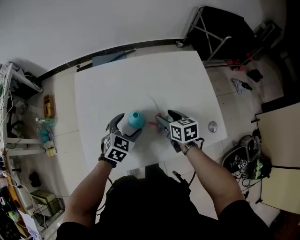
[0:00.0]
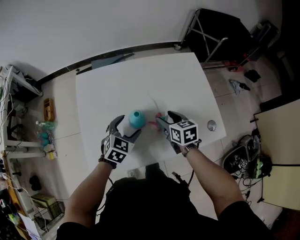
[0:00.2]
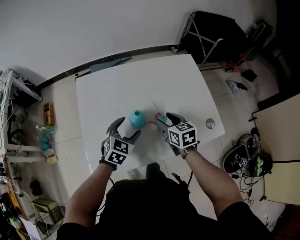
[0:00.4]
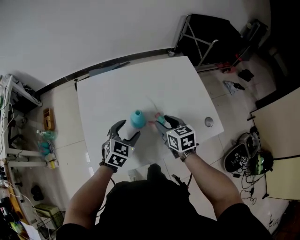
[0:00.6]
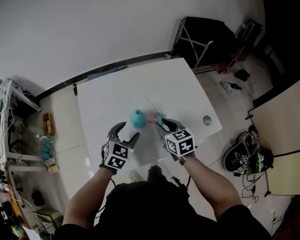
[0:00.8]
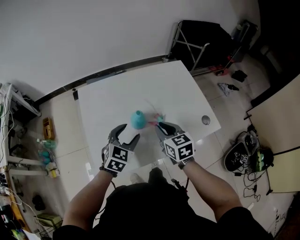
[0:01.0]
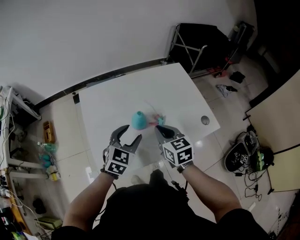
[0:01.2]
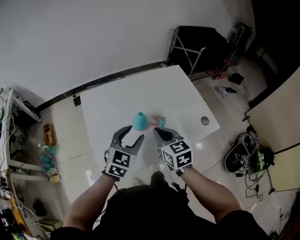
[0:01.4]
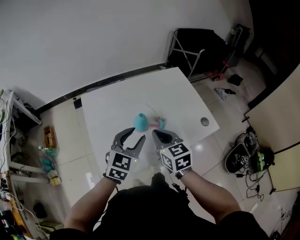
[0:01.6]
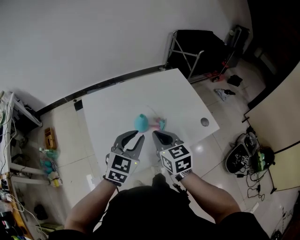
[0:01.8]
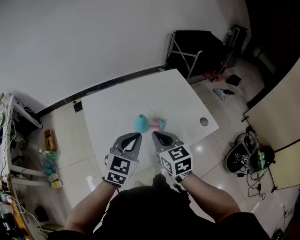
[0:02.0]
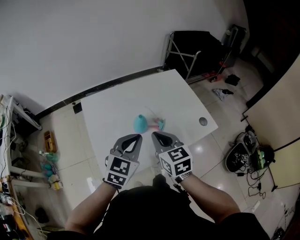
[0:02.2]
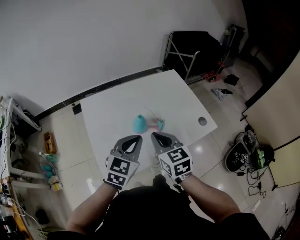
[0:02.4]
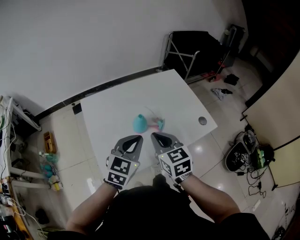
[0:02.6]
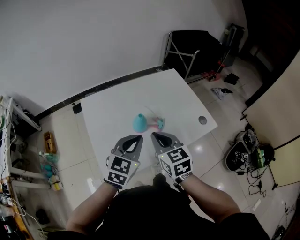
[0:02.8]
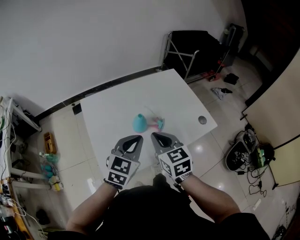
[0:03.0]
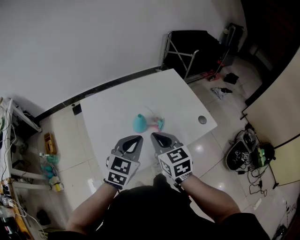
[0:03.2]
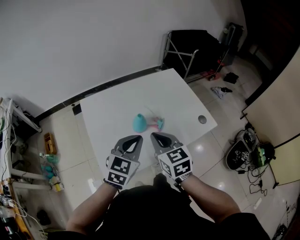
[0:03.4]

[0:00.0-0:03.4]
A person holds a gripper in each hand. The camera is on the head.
0:00.0 to 0:01.6: The right gripper goes roughly 20 cm upward, backward and to the left, swivels roughly 20 degrees, and closes its fingers. Meanwhile the left gripper travels upward and backward by some 15 cm, swivels some 20 degrees, and closes its fingers.
0:01.6 to 0:03.4: The left gripper closes its fingers.

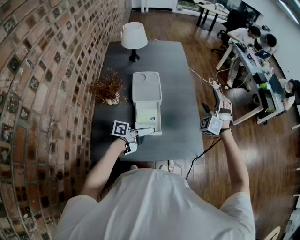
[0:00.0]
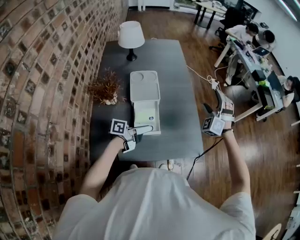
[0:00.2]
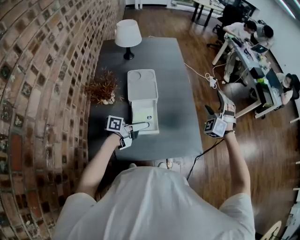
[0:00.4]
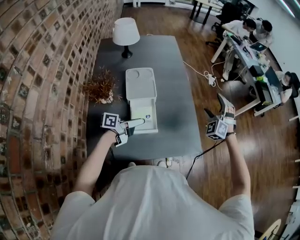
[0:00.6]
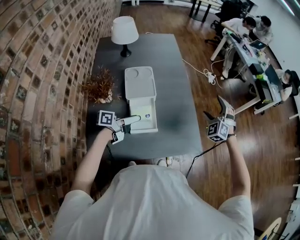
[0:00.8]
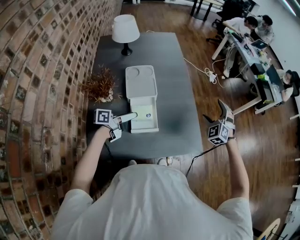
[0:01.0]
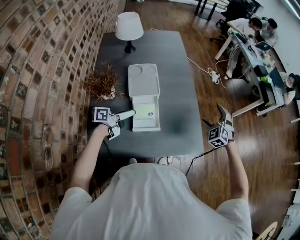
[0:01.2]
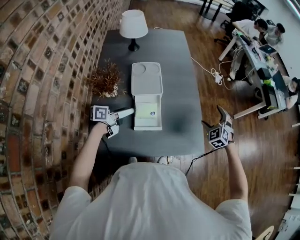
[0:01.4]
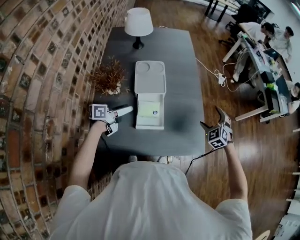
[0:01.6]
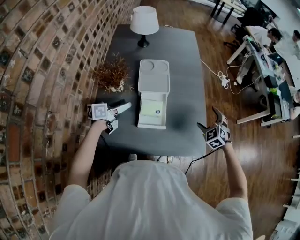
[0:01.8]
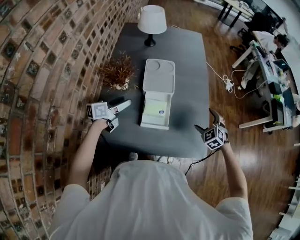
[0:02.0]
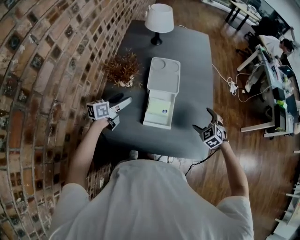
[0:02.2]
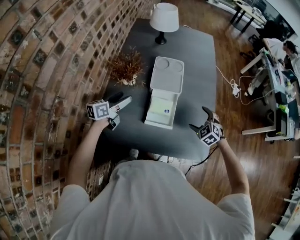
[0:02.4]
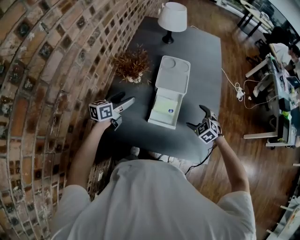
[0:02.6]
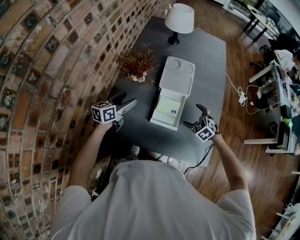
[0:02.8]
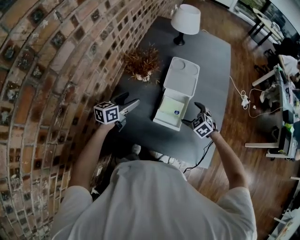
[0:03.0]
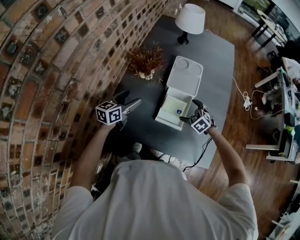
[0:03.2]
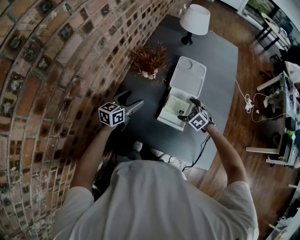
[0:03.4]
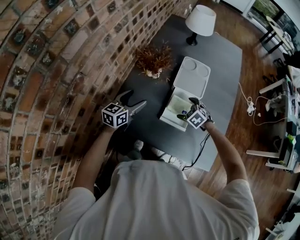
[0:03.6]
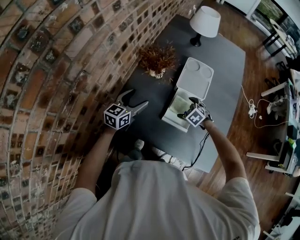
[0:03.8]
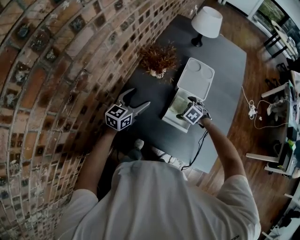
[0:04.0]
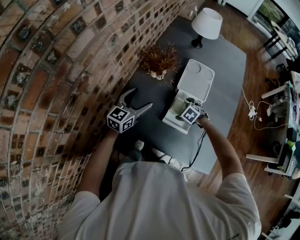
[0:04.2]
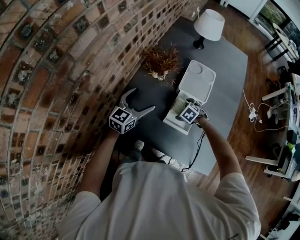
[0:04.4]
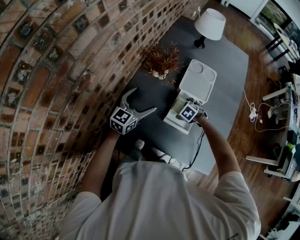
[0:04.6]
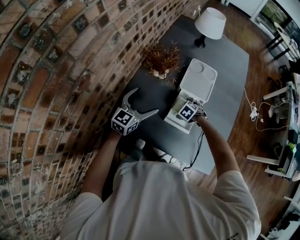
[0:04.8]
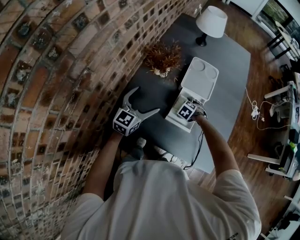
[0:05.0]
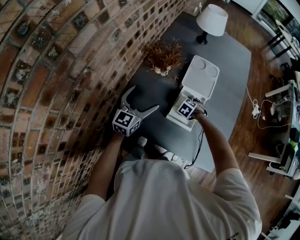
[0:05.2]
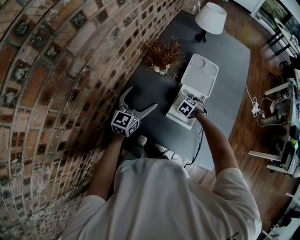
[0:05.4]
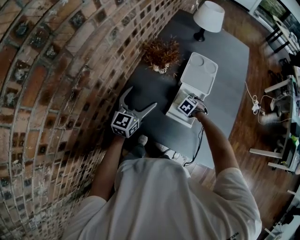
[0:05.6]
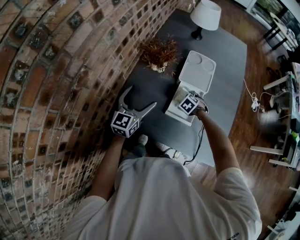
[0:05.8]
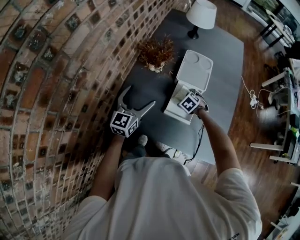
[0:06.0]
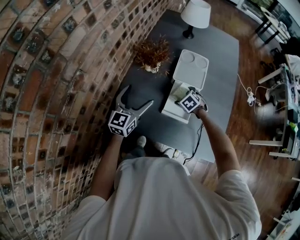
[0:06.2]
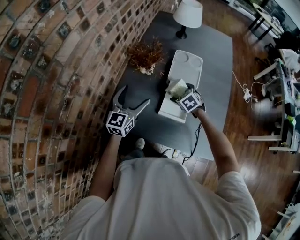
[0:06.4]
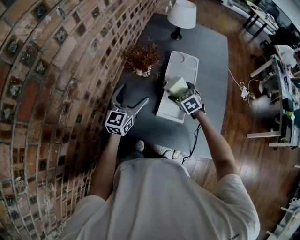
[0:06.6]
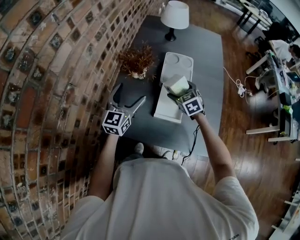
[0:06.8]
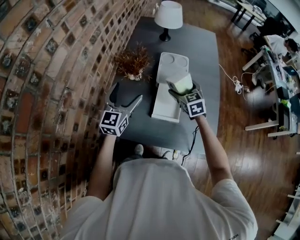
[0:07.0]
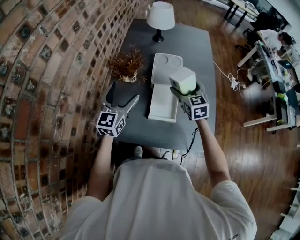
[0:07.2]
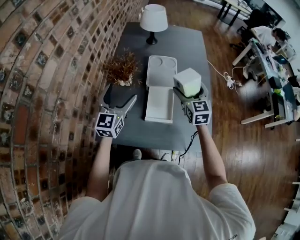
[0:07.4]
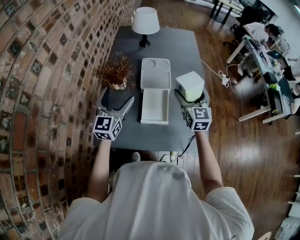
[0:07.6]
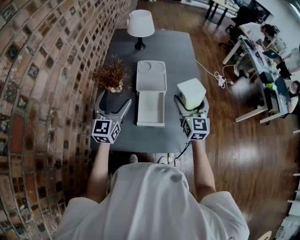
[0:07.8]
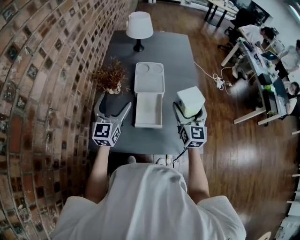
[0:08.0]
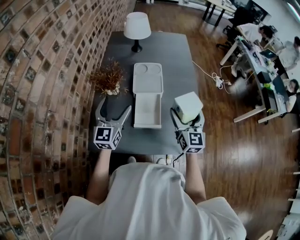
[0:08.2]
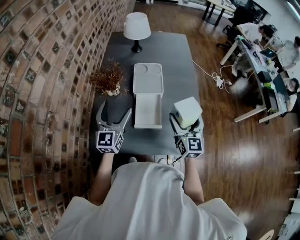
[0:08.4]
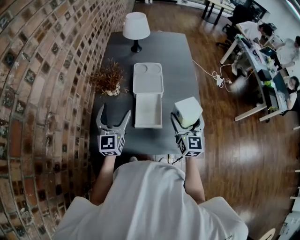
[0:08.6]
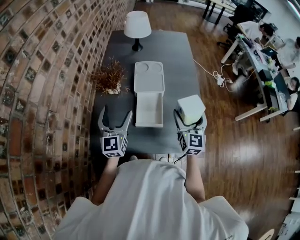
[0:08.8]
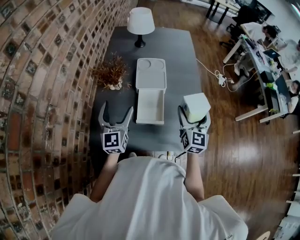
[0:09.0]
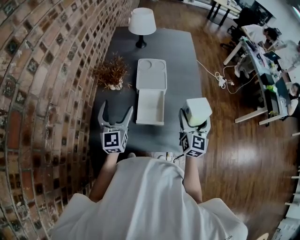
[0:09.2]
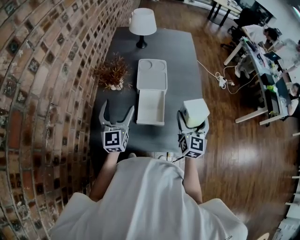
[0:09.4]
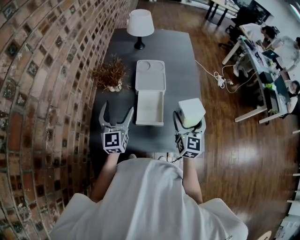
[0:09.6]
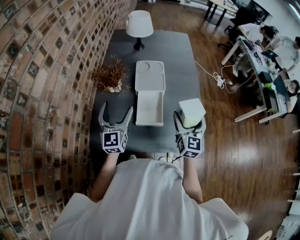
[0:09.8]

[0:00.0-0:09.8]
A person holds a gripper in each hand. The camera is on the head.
0:00.0 to 0:01.4: The right gripper travels downward and to the right by approximately 15 cm, and turns by roughly 30 degrees; the left gripper shifts some 15 cm to the left.
0:01.4 to 0:02.8: The left gripper shifts by approximately 10 cm, and turns by some 40 degrees. Meanwhile the right gripper shifts by some 25 cm, and turns by approximately 30 degrees.
0:02.8 to 0:04.2: The right gripper goes roughly 15 cm to the left, downward and forward, and rotates roughly 20 degrees; the left gripper changes its angle by roughly 30 degrees.
0:04.2 to 0:05.6: The grippers move only a little.
0:05.6 to 0:07.0: The right gripper is displaced upward by roughly 25 cm, and angles its fingers upward, by about 50 degrees; the left gripper shifts approximately 5 cm upward.
0:07.0 to 0:08.4: The right gripper travels backward, to the right and upward by about 20 cm, and points its fingers about 30 degrees further upward. Meanwhile the left gripper goes approximately 5 cm to the right.
0:08.4 to 0:09.8: There are only small adjustments of the grippers.

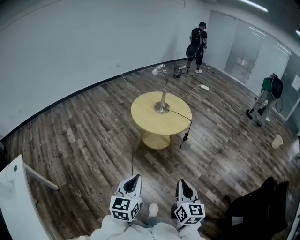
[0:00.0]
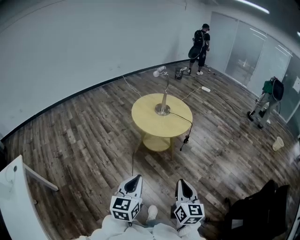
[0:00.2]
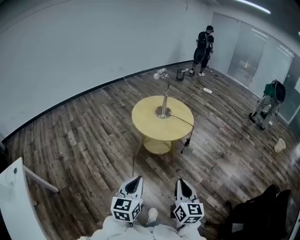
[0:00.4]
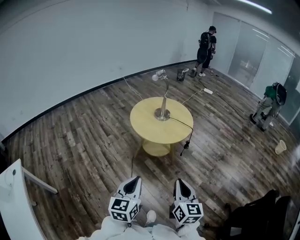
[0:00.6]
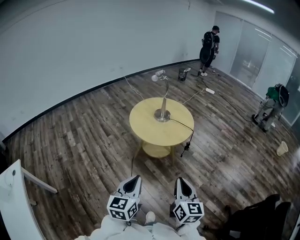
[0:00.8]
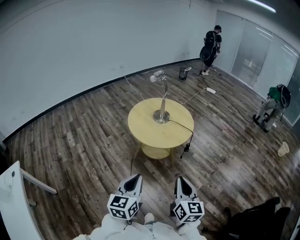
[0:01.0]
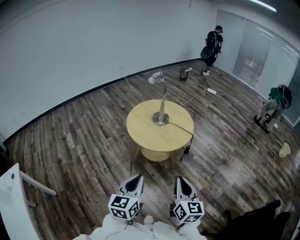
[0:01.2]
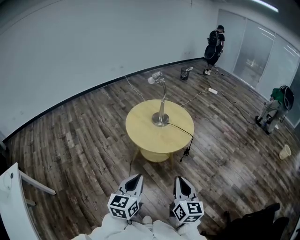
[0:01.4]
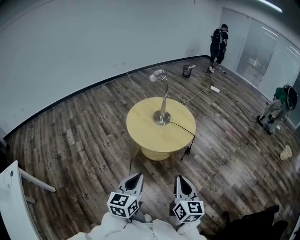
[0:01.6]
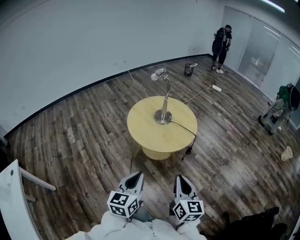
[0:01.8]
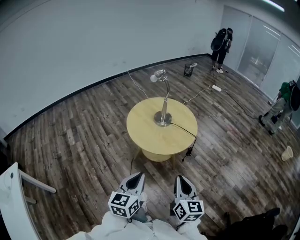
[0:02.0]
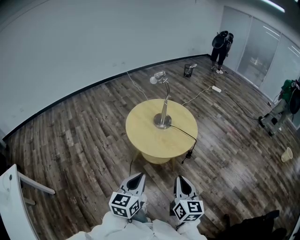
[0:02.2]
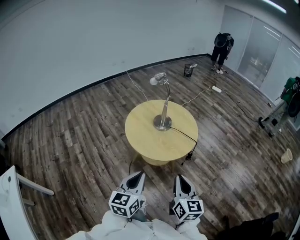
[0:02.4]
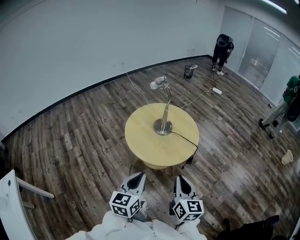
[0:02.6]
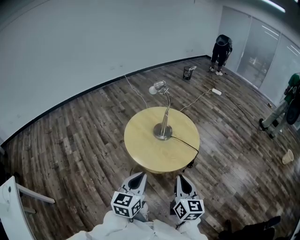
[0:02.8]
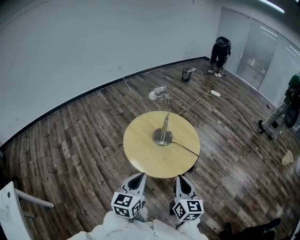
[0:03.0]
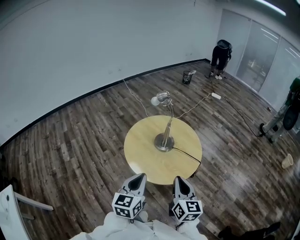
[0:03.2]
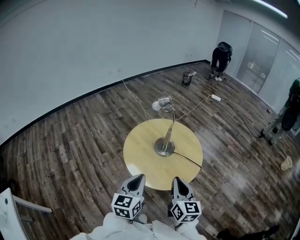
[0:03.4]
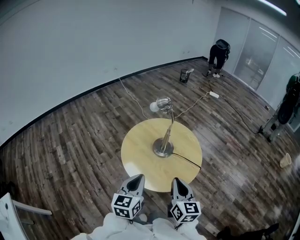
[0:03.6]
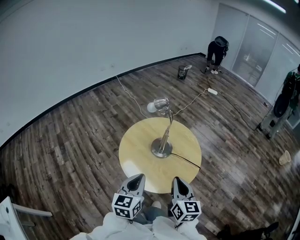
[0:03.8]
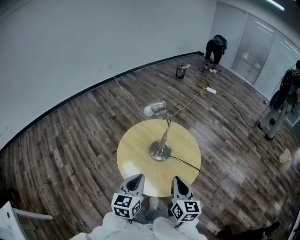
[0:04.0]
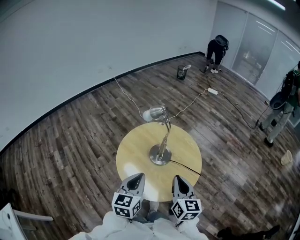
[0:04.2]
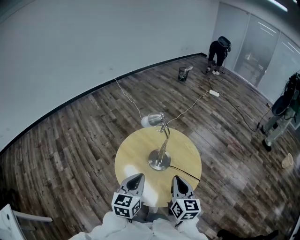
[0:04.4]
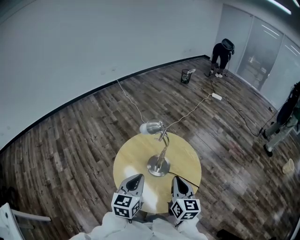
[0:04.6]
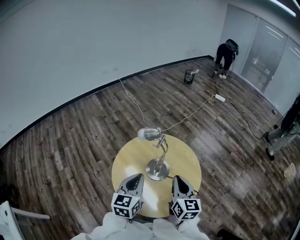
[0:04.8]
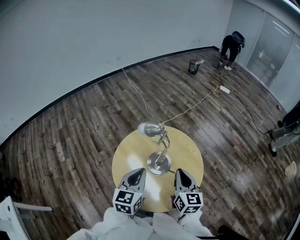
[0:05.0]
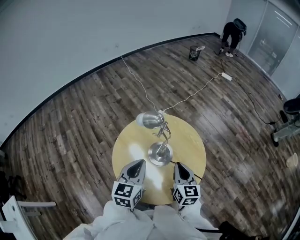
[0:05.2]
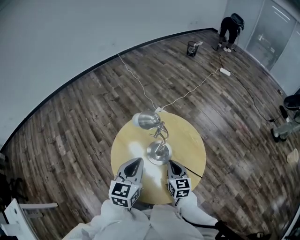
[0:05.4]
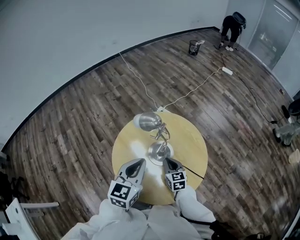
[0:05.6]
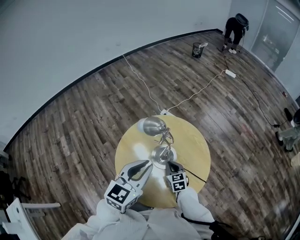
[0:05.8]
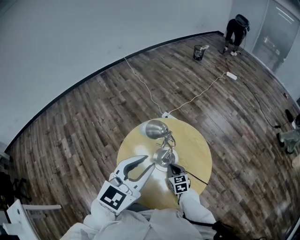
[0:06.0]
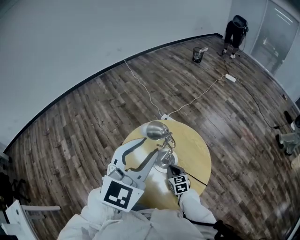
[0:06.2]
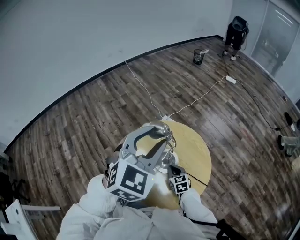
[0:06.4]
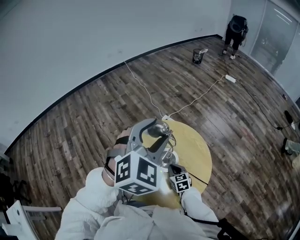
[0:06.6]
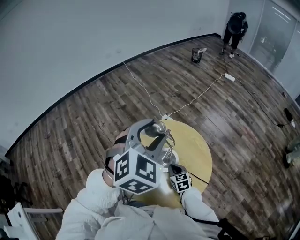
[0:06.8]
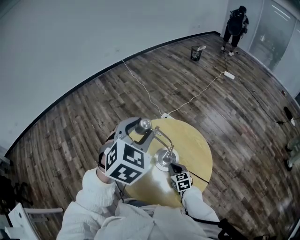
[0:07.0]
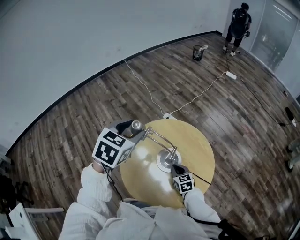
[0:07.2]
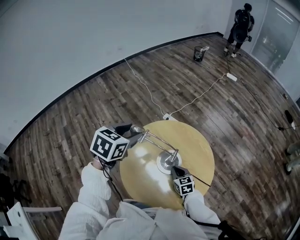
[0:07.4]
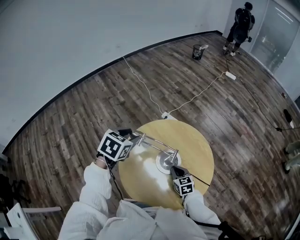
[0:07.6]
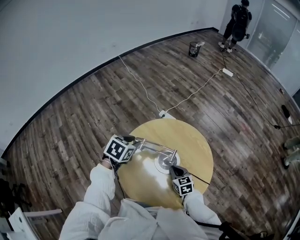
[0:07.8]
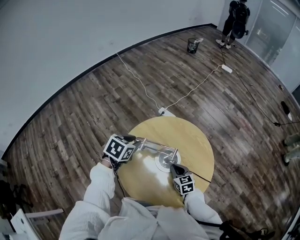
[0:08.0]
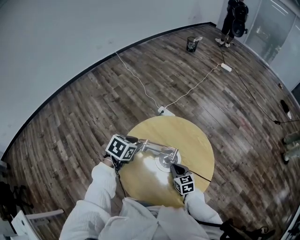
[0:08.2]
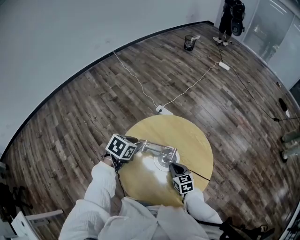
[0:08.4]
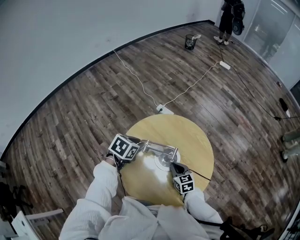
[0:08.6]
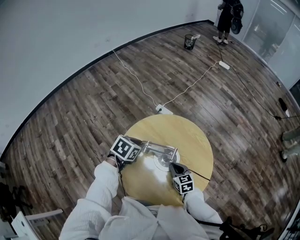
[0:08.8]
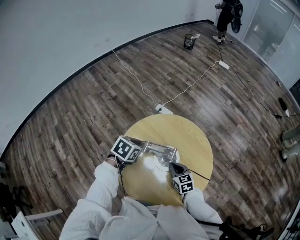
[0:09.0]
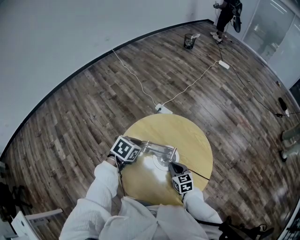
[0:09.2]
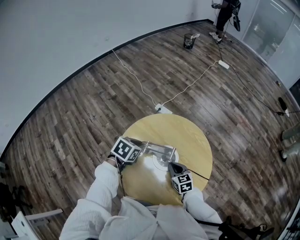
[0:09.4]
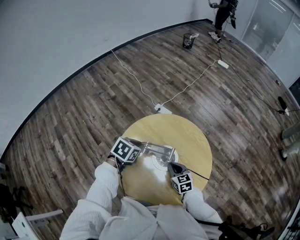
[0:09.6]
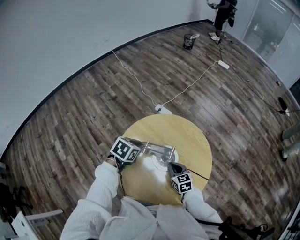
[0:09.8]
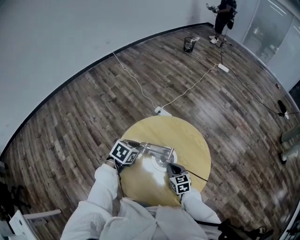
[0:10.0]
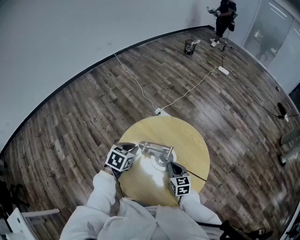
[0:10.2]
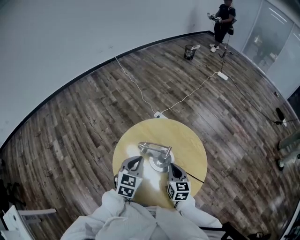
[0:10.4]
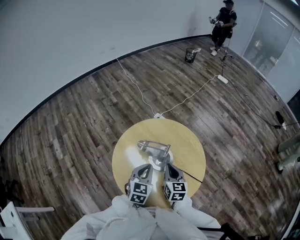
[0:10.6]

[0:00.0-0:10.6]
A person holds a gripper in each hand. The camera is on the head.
0:00.0 to 0:01.6: Both grippers move forward, roughly 20 cm.
0:01.6 to 0:03.0: The two grippers go approximately 20 cm forward.
0:03.0 to 0:04.6: The two grippers go approximately 30 cm forward.
0:04.6 to 0:06.0: The left gripper travels upward and forward by roughly 15 cm, changes its angle by some 20 degrees, and opens up; the right gripper goes roughly 25 cm downward and forward, and turns by approximately 30 degrees.
0:06.0 to 0:07.6: The left gripper moves forward, downward and to the left, some 20 cm, tips its fingers downward by roughly 40 degrees, and opens up.
0:07.6 to 0:09.0: The left gripper is displaced downward and to the right by roughly 15 cm, and closes its fingers.
0:09.0 to 0:10.6: The right gripper moves upward, approximately 10 cm. The left gripper shifts about 15 cm backward and to the right, and rotates about 40 degrees.
